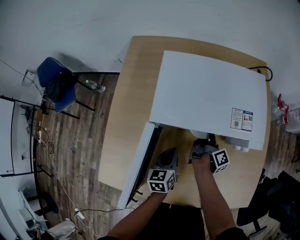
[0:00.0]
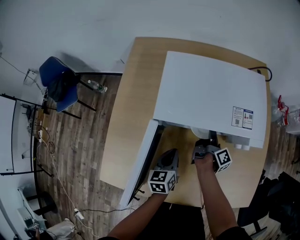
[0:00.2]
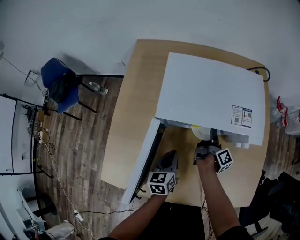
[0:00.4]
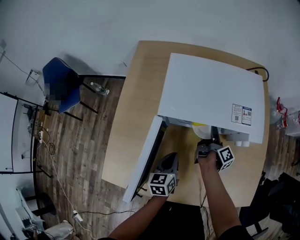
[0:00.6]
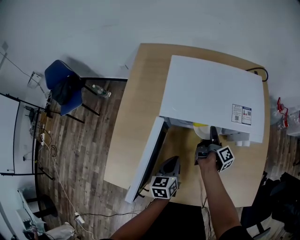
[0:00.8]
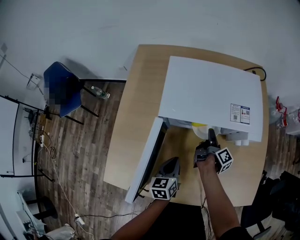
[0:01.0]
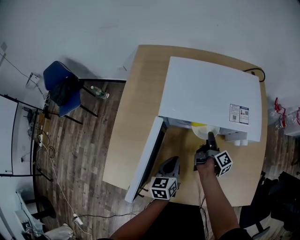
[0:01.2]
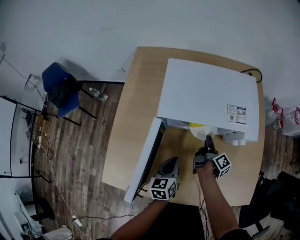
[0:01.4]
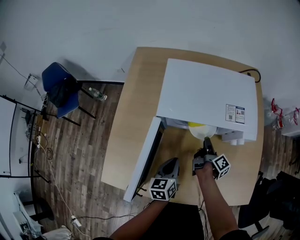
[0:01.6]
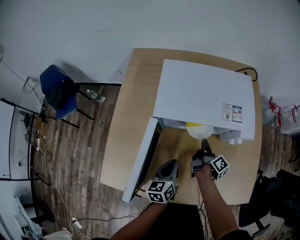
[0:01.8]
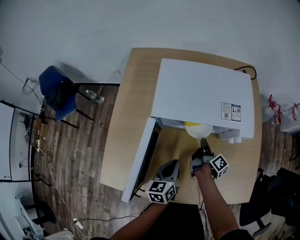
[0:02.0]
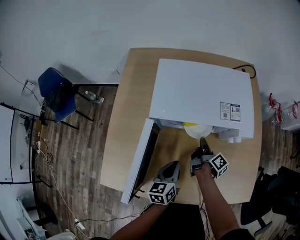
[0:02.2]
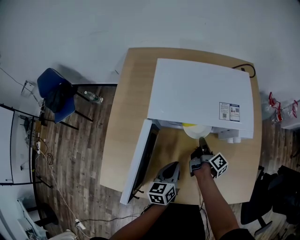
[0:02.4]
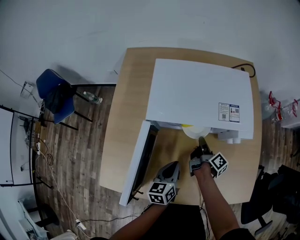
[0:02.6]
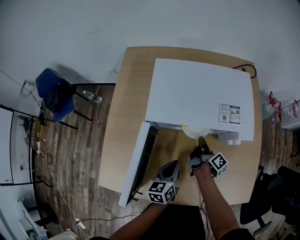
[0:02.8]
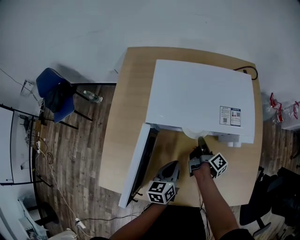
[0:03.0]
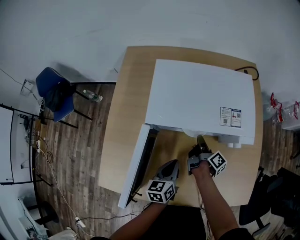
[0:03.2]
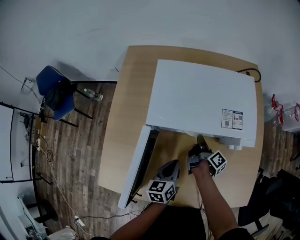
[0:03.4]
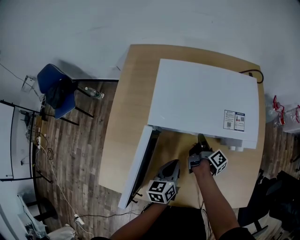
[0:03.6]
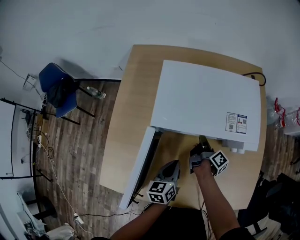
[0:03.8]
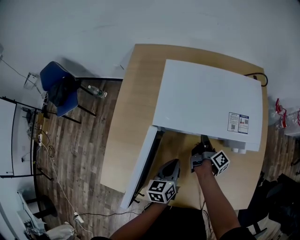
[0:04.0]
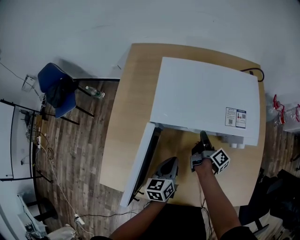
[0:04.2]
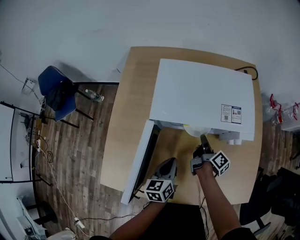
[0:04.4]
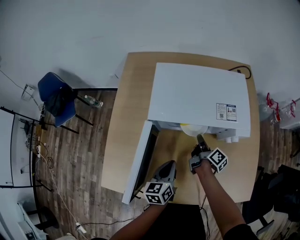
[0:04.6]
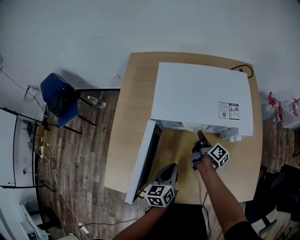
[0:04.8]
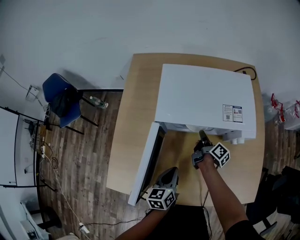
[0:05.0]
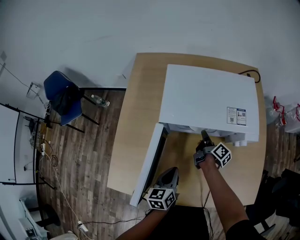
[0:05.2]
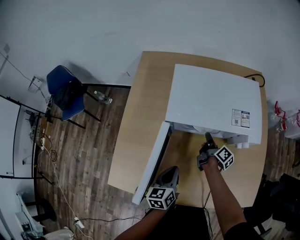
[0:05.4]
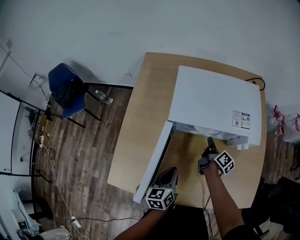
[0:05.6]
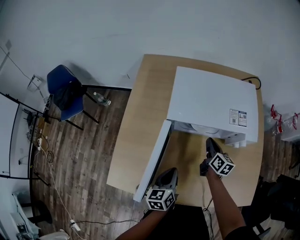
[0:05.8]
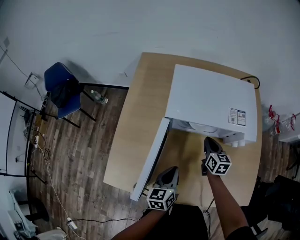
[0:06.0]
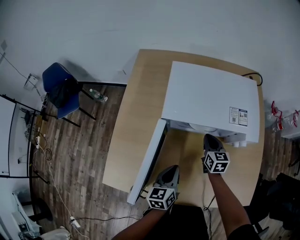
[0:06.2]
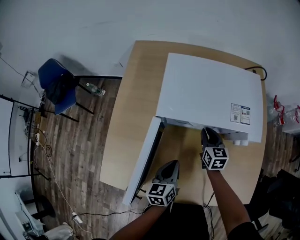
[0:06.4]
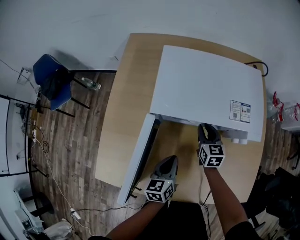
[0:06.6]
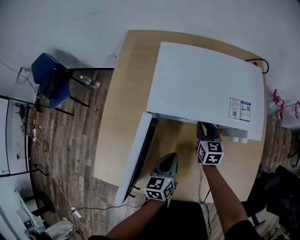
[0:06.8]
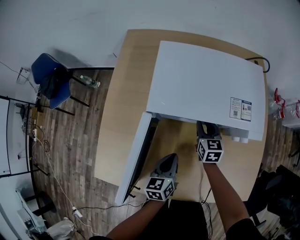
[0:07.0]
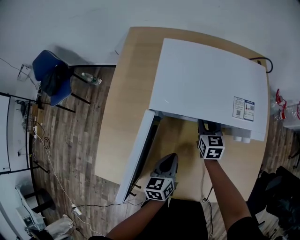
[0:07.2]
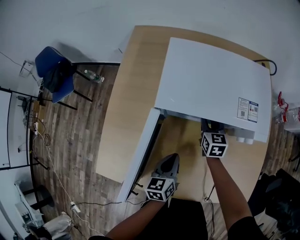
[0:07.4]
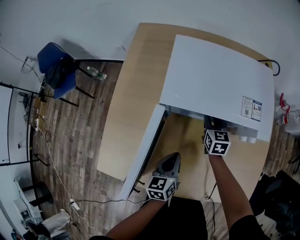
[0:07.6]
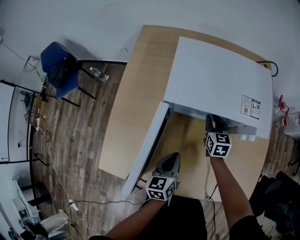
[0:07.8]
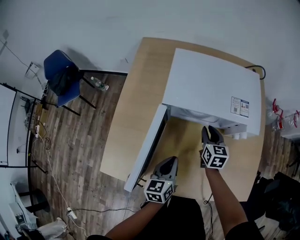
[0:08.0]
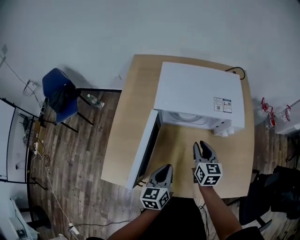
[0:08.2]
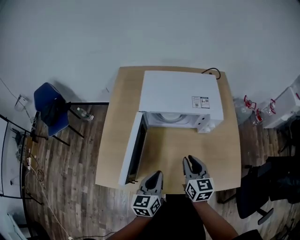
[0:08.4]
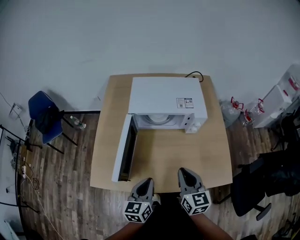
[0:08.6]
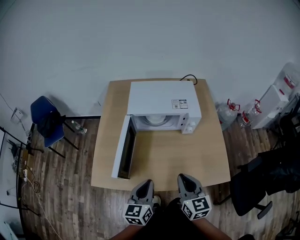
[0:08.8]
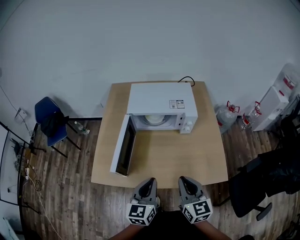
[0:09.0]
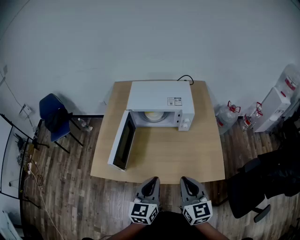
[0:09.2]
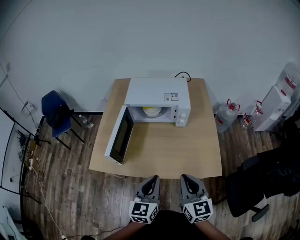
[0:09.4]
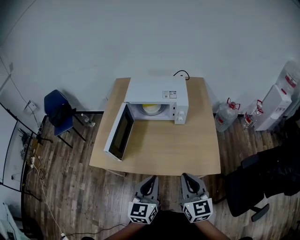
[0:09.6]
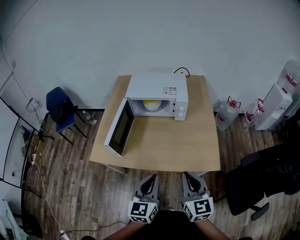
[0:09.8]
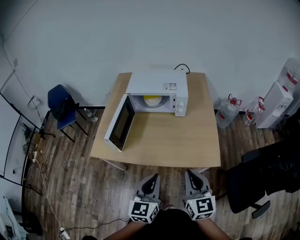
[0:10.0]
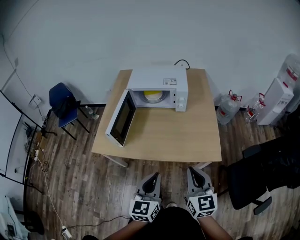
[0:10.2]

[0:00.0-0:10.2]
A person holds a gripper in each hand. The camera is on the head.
0.0 to 1.4 s: The left gripper moves approximately 5 cm.
4.4 to 5.8 s: The left gripper moves about 5 cm.
5.8 to 7.2 s: The left gripper changes place by some 10 cm.
7.2 to 8.8 s: The left gripper moves about 25 cm, and turns by approximately 20 degrees.
8.8 to 10.2 s: The left gripper shifts by some 25 cm.

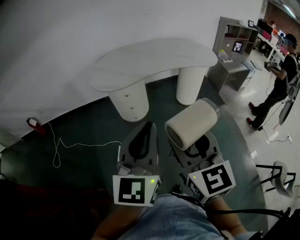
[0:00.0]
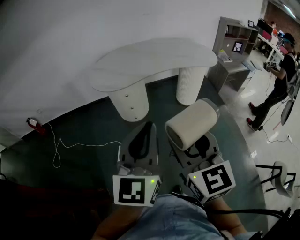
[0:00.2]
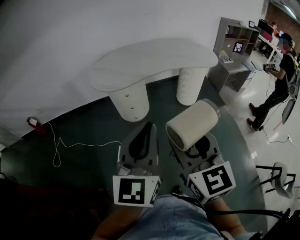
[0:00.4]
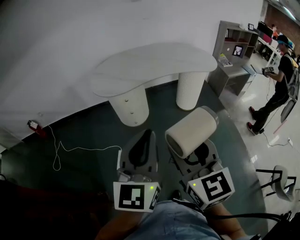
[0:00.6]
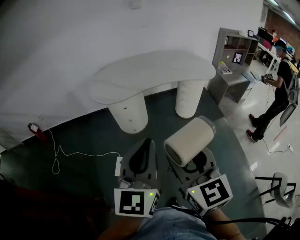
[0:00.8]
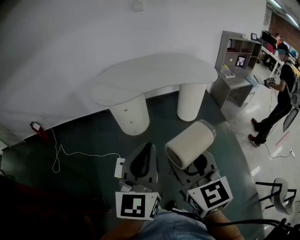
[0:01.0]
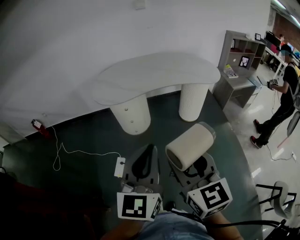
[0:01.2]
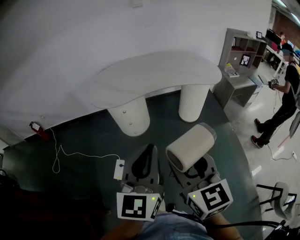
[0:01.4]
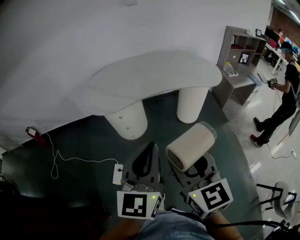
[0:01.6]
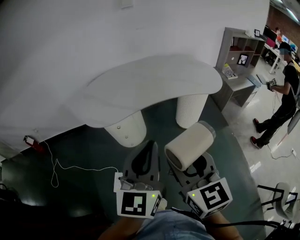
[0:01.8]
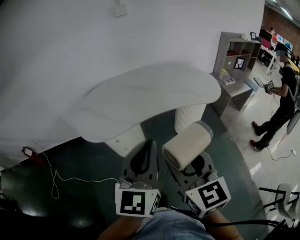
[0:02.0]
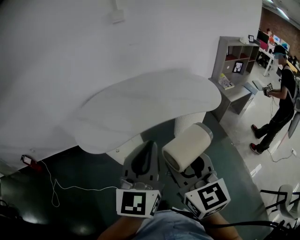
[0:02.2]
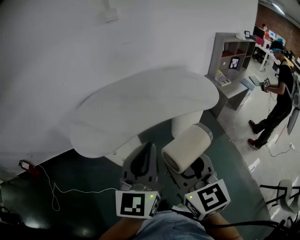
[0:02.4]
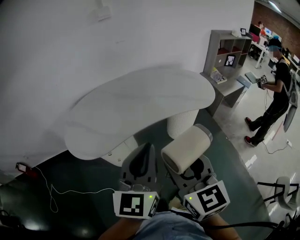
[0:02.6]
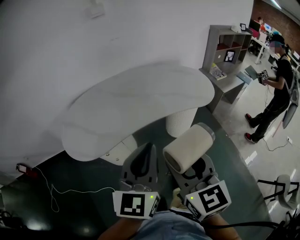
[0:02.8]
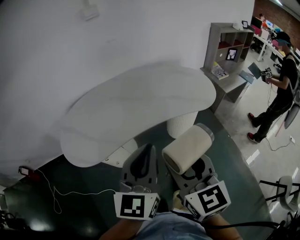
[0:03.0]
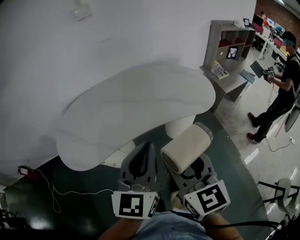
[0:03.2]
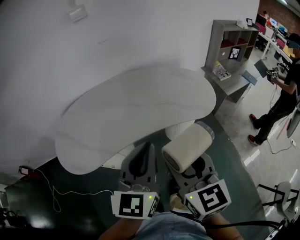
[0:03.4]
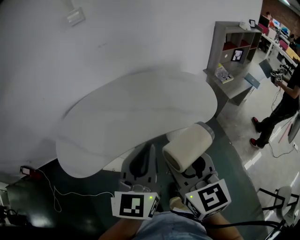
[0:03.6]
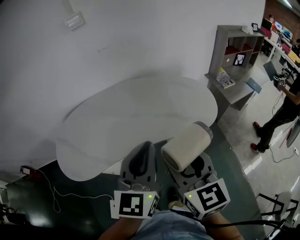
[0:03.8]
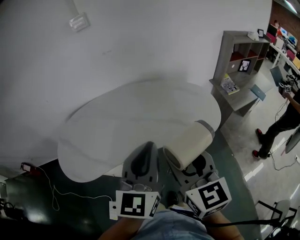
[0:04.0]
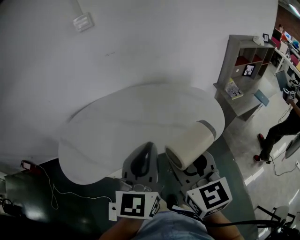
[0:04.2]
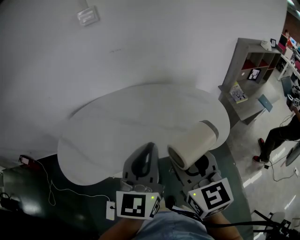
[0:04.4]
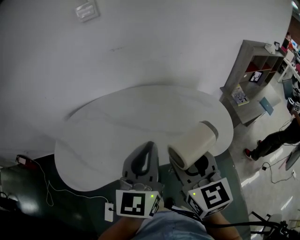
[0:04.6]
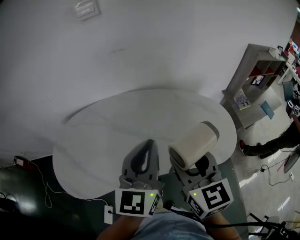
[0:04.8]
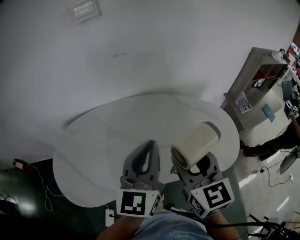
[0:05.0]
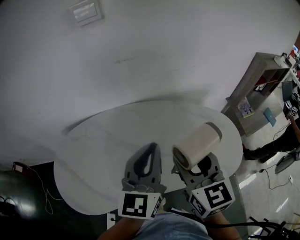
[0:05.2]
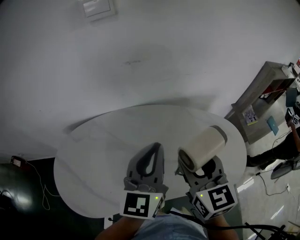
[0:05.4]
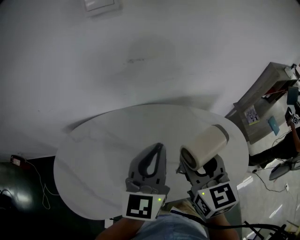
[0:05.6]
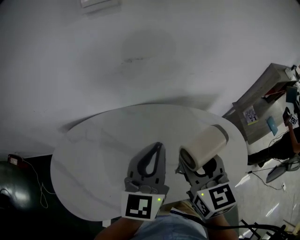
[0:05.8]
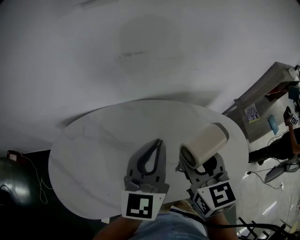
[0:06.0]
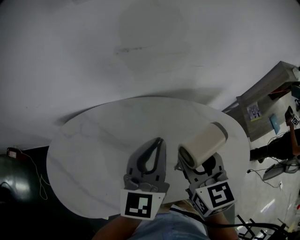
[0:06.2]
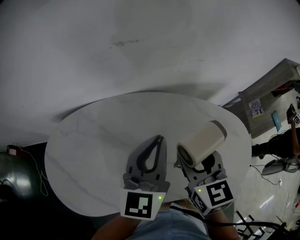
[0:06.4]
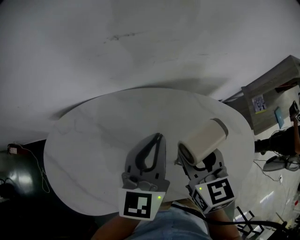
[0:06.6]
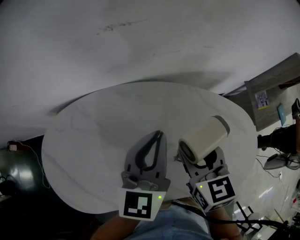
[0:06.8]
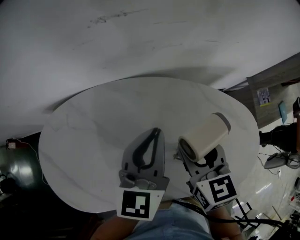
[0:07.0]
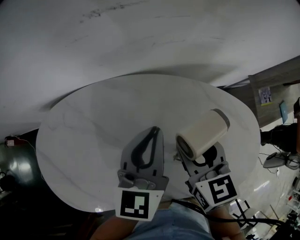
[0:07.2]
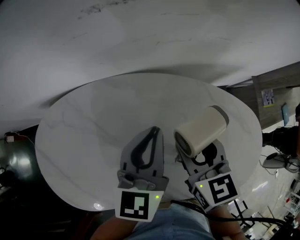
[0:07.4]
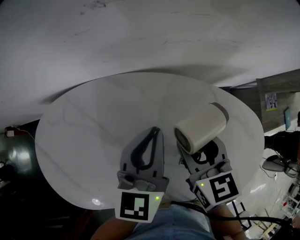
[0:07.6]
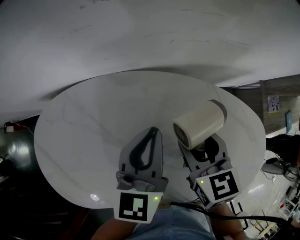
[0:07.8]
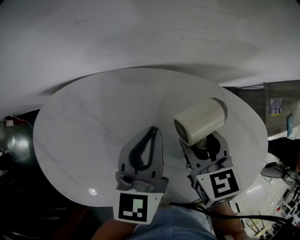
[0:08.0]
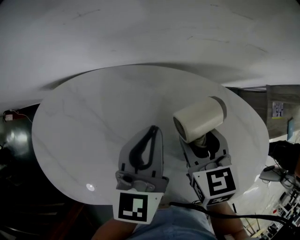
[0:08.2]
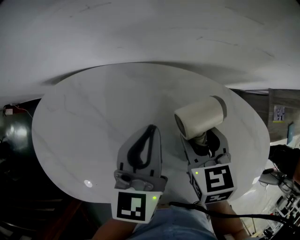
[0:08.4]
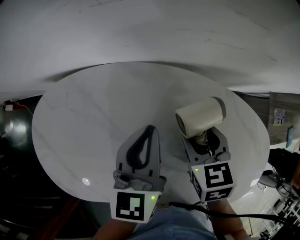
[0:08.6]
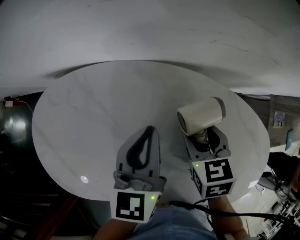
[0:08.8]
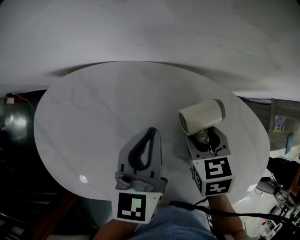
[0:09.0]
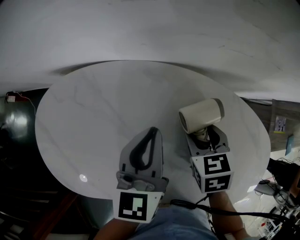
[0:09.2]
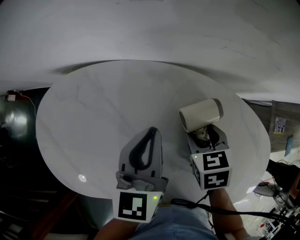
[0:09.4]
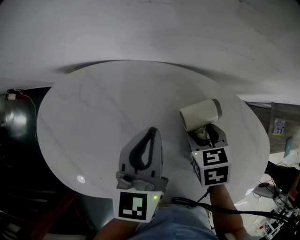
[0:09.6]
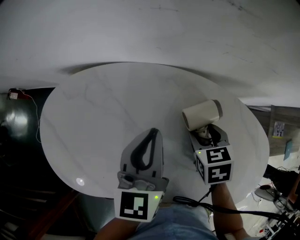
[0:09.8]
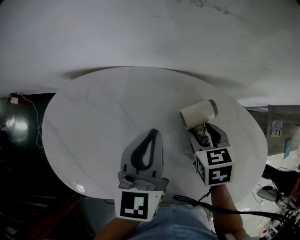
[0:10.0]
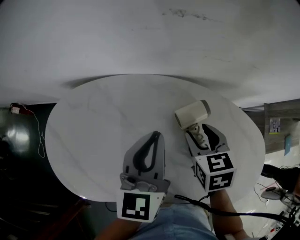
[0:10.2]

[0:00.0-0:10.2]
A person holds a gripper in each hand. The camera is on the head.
0.0 to 1.4 s: The two grippers go roughly 10 cm to the right and forward.
1.4 to 3.0 s: Both grippers move forward, roughly 35 cm.
3.0 to 4.4 s: Both grippers travel together forward, approximately 20 cm.
4.4 to 5.8 s: Both grippers travel together forward, some 25 cm.
5.8 to 7.2 s: The two grippers go about 15 cm downward and forward.
7.2 to 8.8 s: The right gripper shifts some 10 cm downward, and rotates roughly 30 degrees, while the left gripper is displaced to the left and downward by some 10 cm.
8.8 to 10.2 s: Both grippers move upward, about 5 cm.

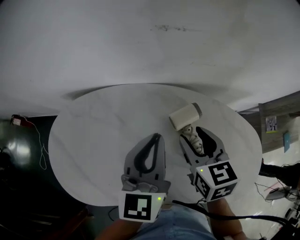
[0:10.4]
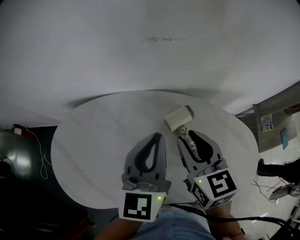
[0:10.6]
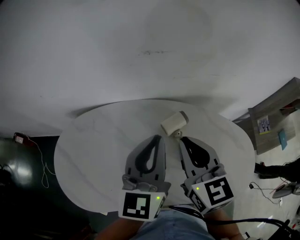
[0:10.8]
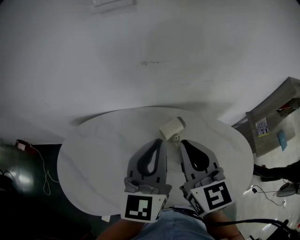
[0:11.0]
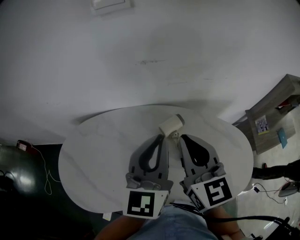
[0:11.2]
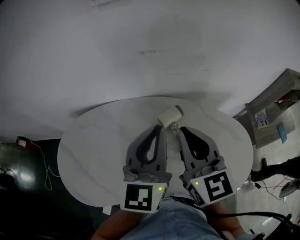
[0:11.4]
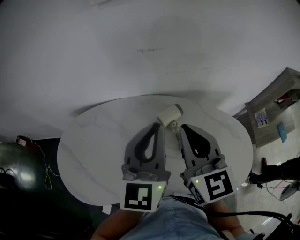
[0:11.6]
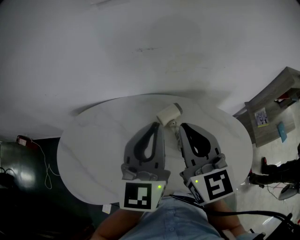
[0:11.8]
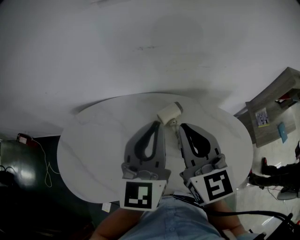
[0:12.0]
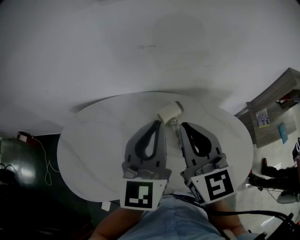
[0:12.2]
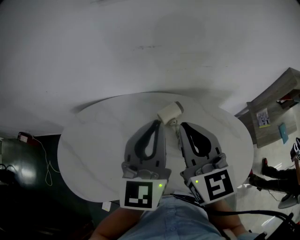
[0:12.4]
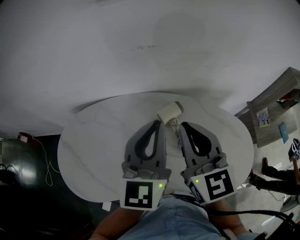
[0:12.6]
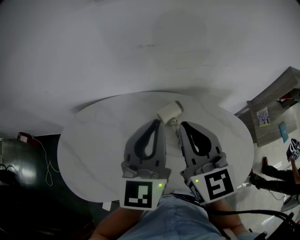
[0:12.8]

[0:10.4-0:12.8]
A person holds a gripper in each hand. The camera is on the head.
10.4 to 11.6 s: The right gripper goes some 15 cm upward, turns by approximately 30 degrees, and closes, while the left gripper heads upward and backward, covering approximately 10 cm.
11.6 to 12.8 s: Both grippers stay about where they are.

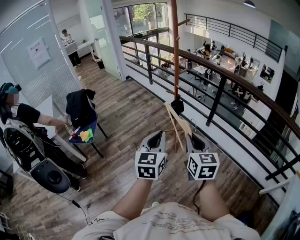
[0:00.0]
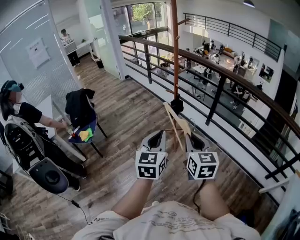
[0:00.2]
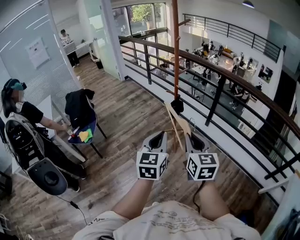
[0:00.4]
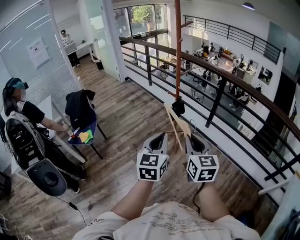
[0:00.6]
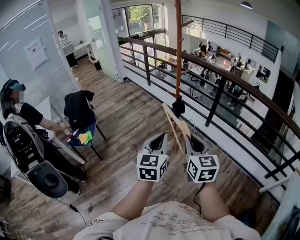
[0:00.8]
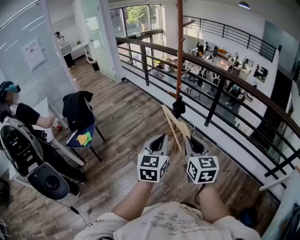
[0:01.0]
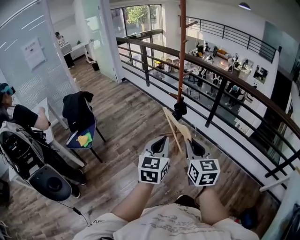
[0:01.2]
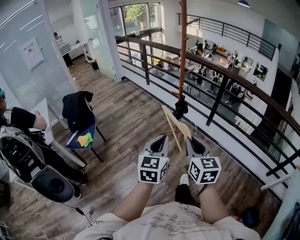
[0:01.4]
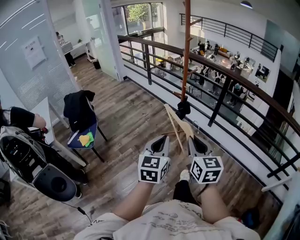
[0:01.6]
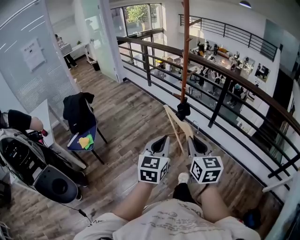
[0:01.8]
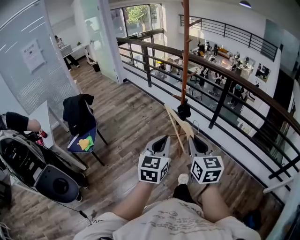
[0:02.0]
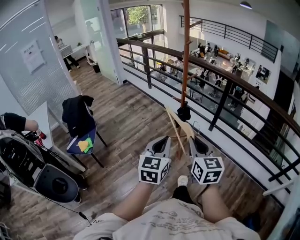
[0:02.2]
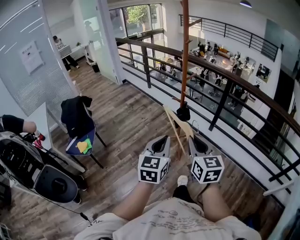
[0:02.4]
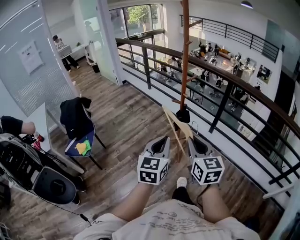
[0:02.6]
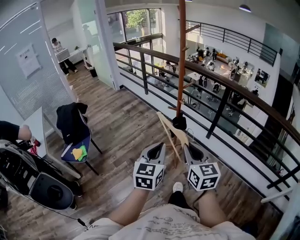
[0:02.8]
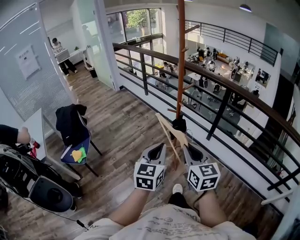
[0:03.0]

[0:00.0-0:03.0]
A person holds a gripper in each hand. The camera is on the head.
0.0 to 1.6 s: Both grippers travel together to the left, about 10 cm.
1.6 to 3.0 s: The two grippers go some 15 cm forward.
